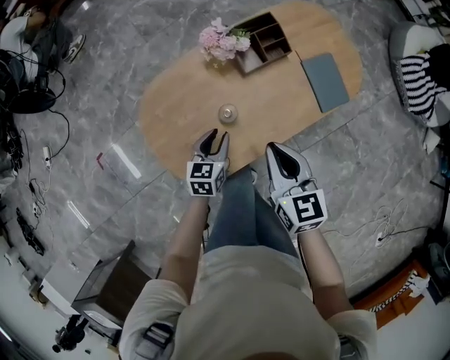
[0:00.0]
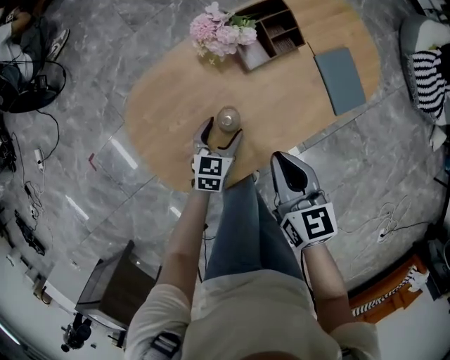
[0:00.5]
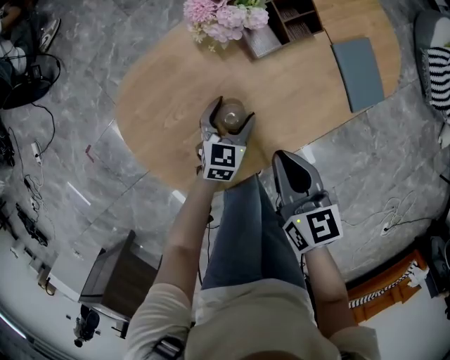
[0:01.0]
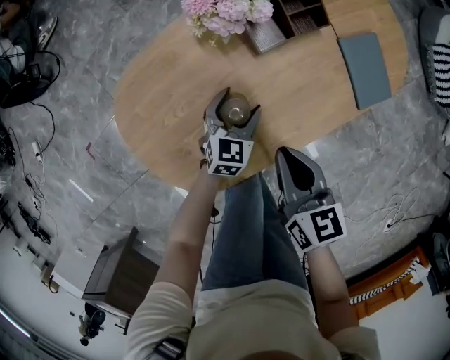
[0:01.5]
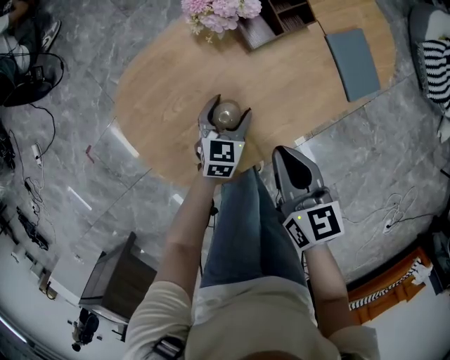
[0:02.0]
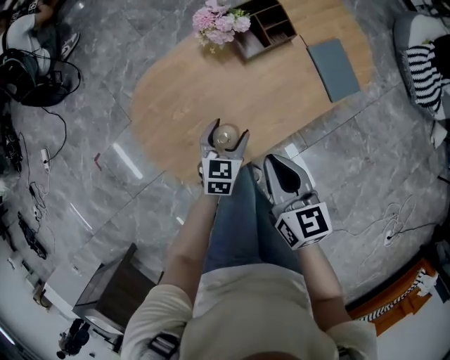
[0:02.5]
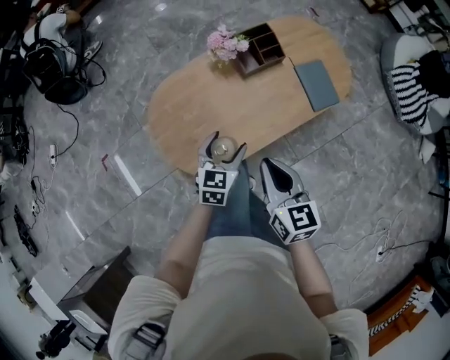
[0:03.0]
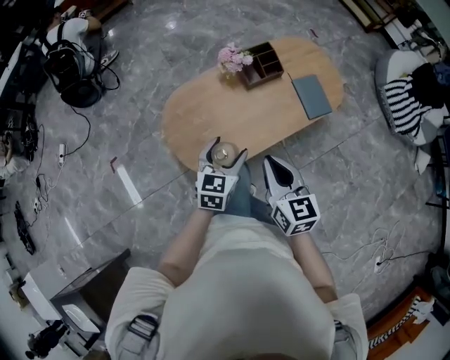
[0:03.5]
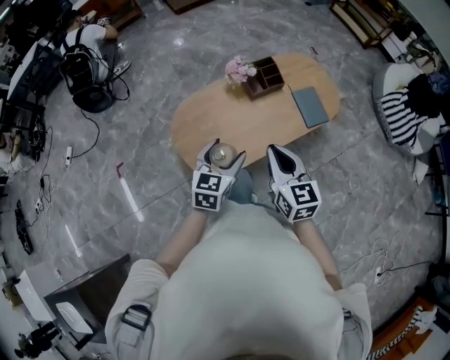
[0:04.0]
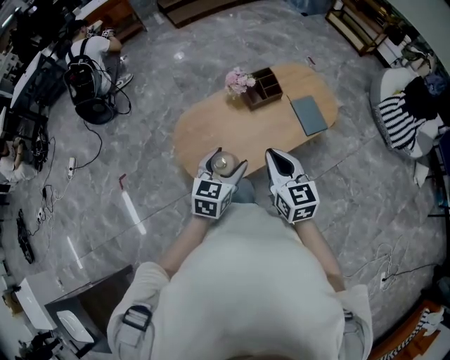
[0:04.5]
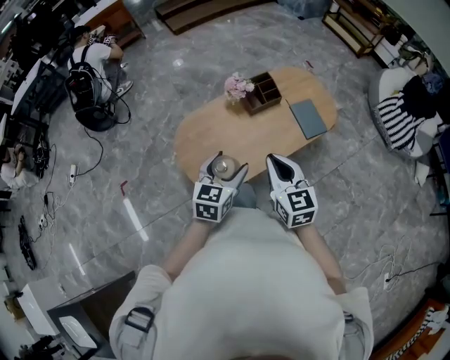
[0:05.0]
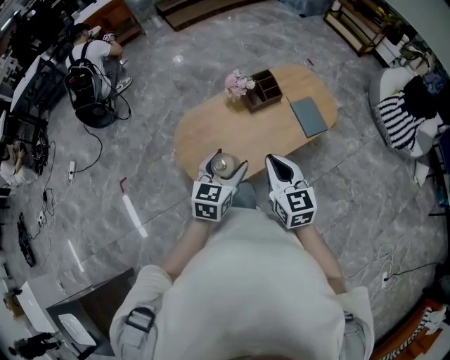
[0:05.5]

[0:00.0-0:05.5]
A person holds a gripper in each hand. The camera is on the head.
0:00.0 to 0:02.0: The left gripper goes roughly 15 cm downward and forward, and opens its fingers. Meanwhile the right gripper is displaced downward by about 10 cm.
0:02.0 to 0:03.5: Both grippers travel together upward and backward, roughly 30 cm.
0:03.5 to 0:05.5: The left gripper is displaced upward by roughly 10 cm.

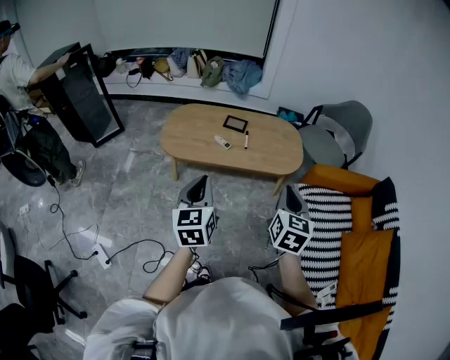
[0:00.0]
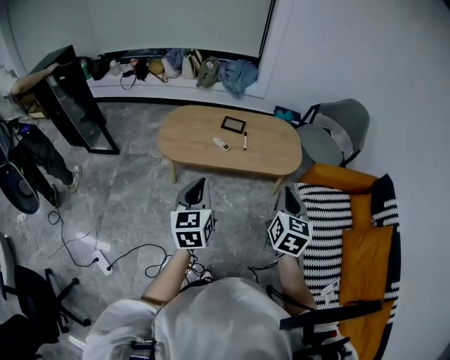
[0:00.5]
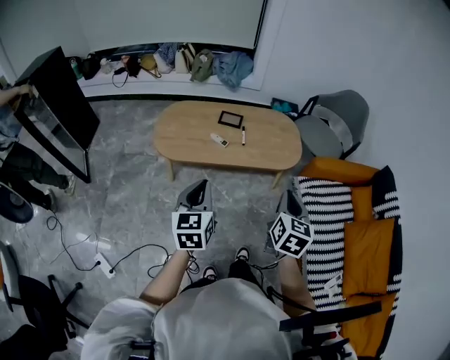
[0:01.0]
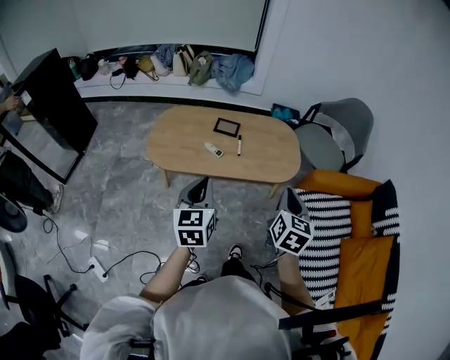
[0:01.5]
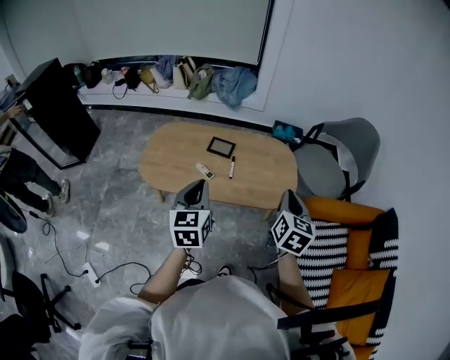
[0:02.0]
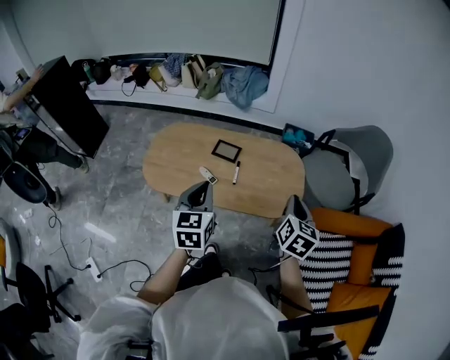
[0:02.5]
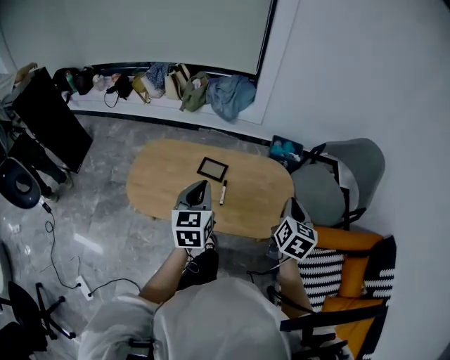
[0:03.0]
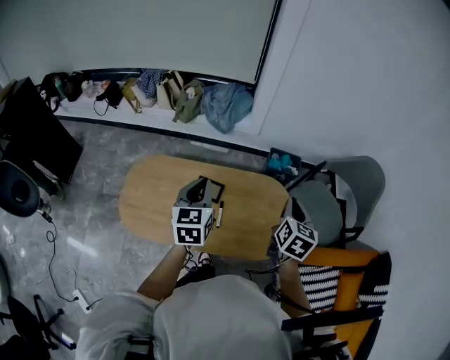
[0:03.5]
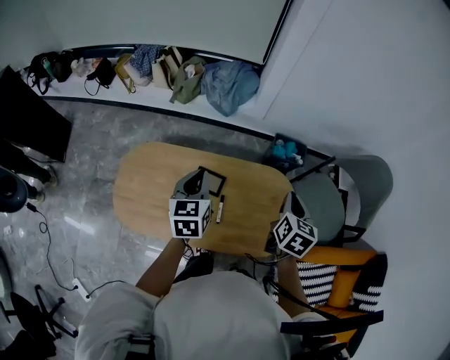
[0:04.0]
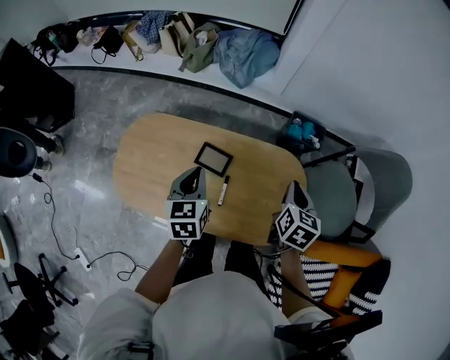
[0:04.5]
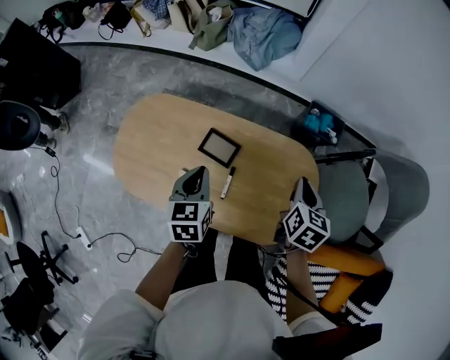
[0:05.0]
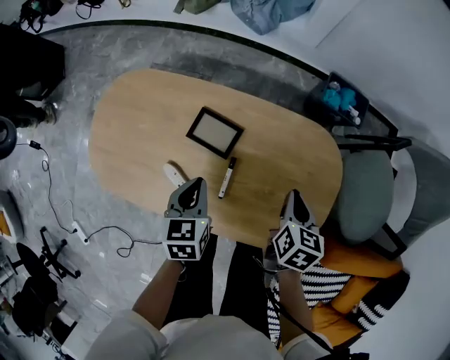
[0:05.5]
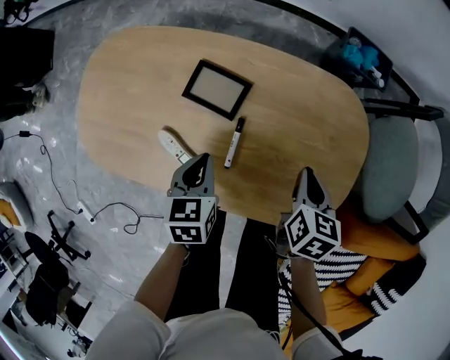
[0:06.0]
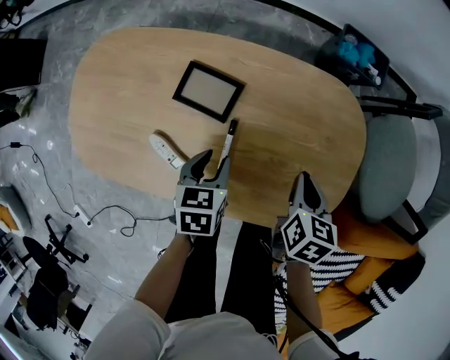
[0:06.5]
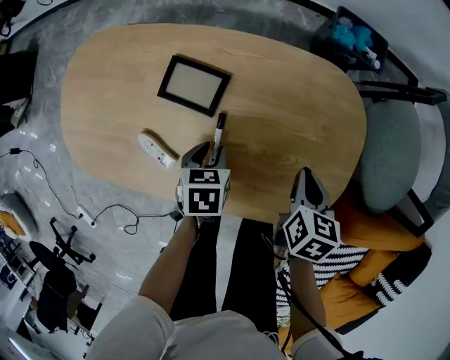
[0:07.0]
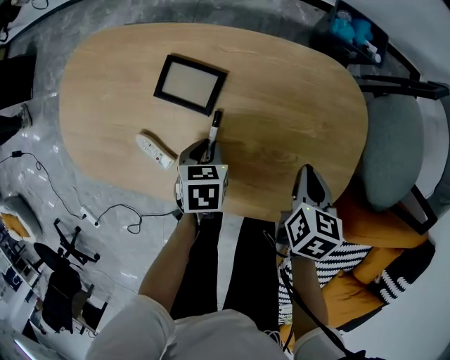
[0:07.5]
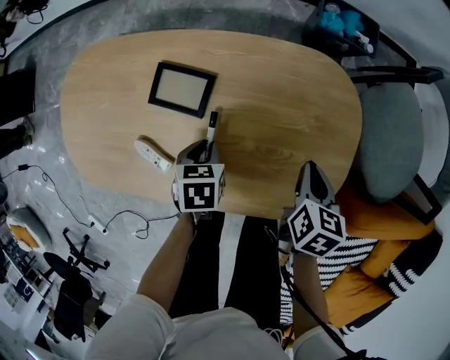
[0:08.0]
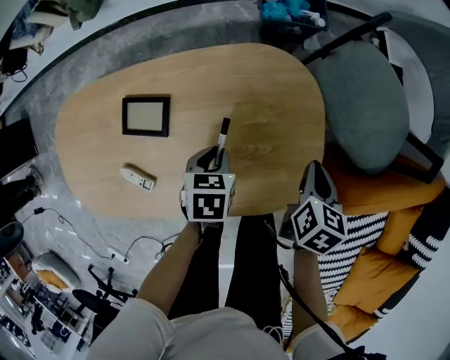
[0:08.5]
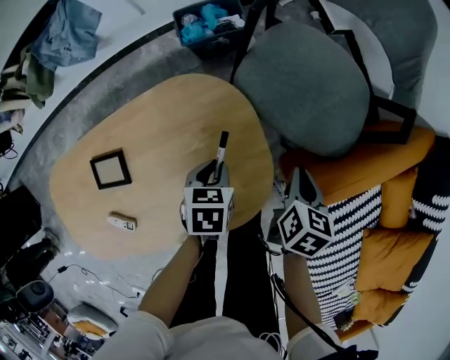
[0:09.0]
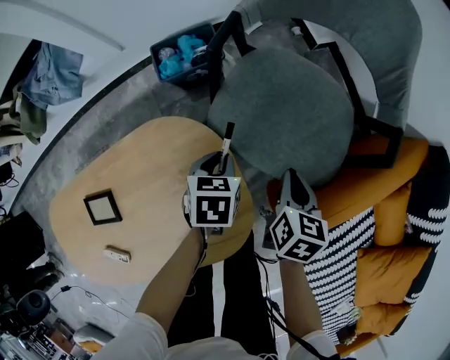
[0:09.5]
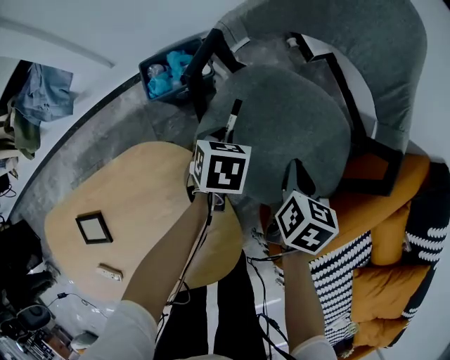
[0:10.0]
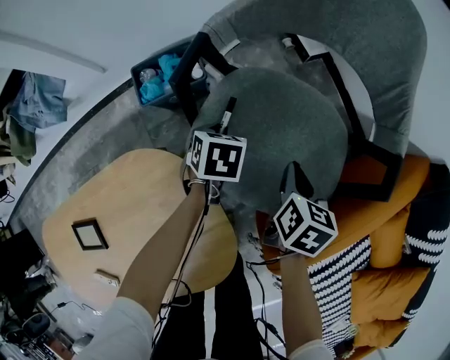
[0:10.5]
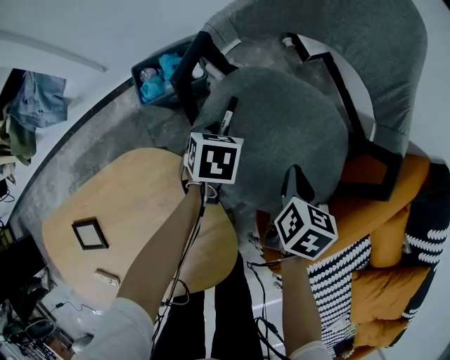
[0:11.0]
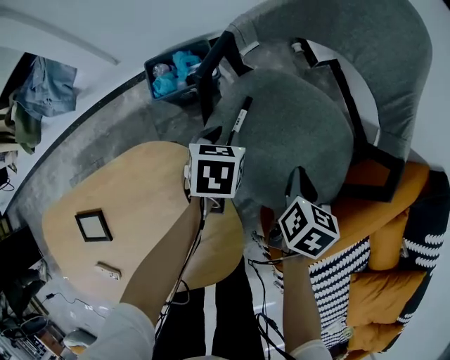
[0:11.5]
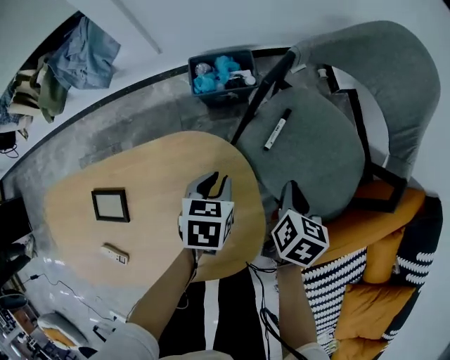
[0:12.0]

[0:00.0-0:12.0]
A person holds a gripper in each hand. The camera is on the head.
0:00.0 to 0:02.0: The two grippers go roughly 25 cm forward.
0:02.0 to 0:04.0: The grippers both shift forward by about 40 cm.
0:04.0 to 0:06.0: Both grippers move downward, about 35 cm. The right gripper turns by approximately 30 degrees. Meanwhile the left gripper changes its angle by about 30 degrees.
0:06.0 to 0:08.0: The right gripper heads to the right, covering approximately 5 cm; the left gripper heads downward and to the right, covering about 10 cm, and turns by roughly 20 degrees.
0:08.0 to 0:10.0: The left gripper shifts by roughly 50 cm, and turns by about 40 degrees, while the right gripper shifts by some 35 cm, and changes its angle by some 40 degrees.
0:10.0 to 0:12.0: The right gripper goes approximately 10 cm to the left and backward, while the left gripper shifts about 20 cm backward, to the left and upward.

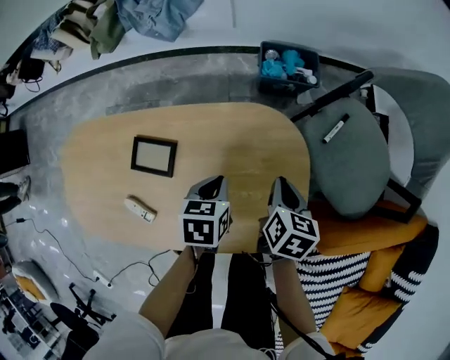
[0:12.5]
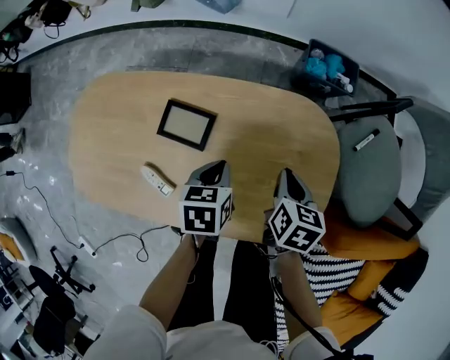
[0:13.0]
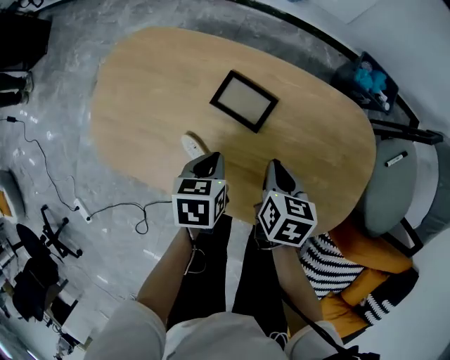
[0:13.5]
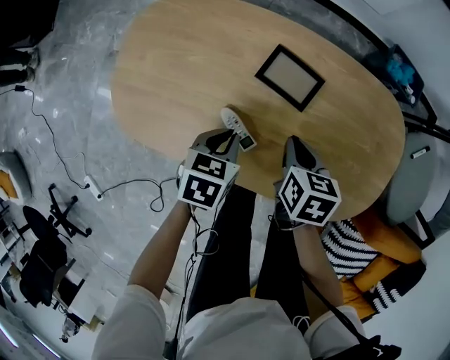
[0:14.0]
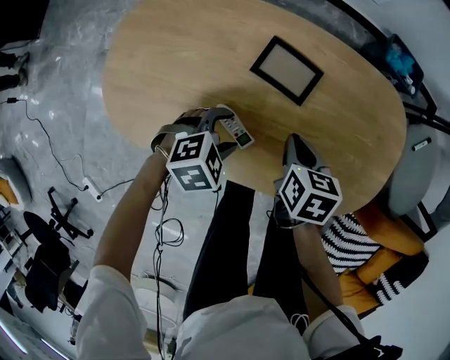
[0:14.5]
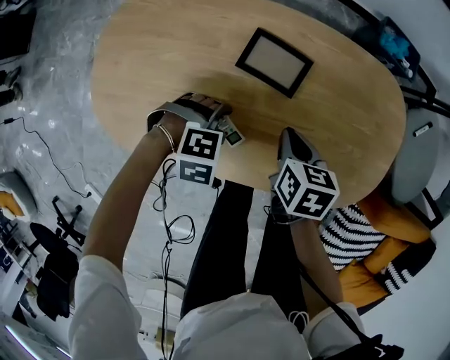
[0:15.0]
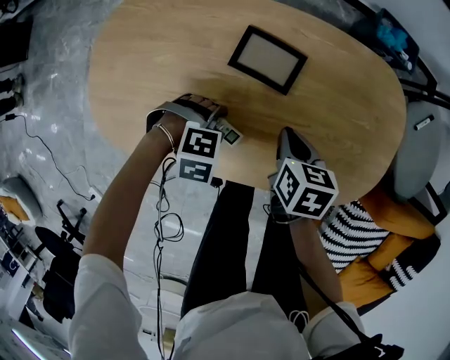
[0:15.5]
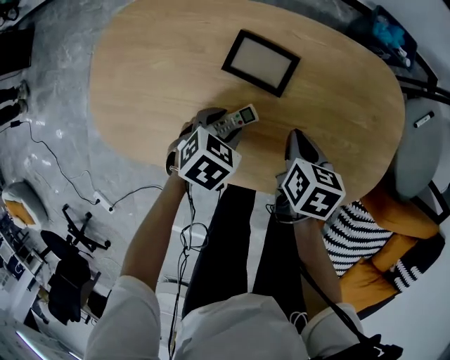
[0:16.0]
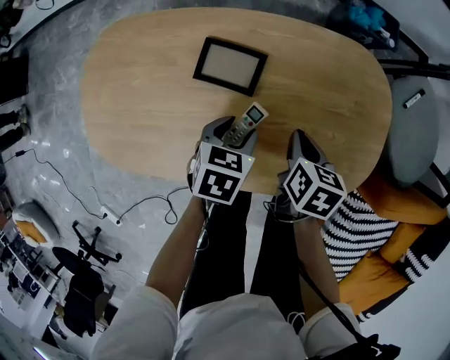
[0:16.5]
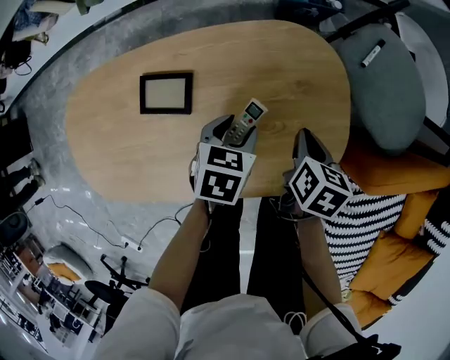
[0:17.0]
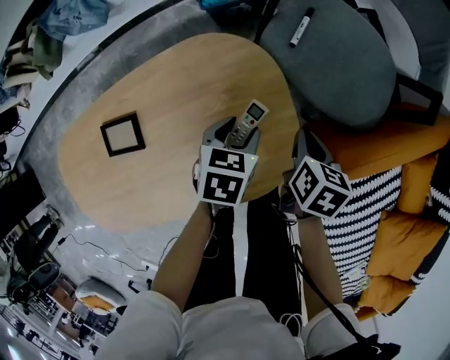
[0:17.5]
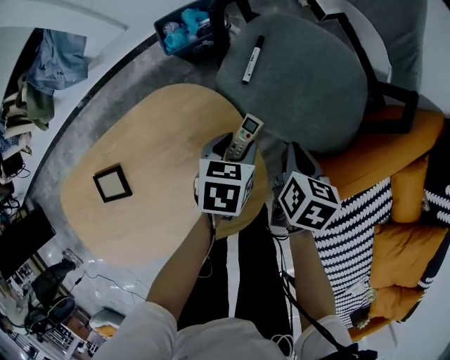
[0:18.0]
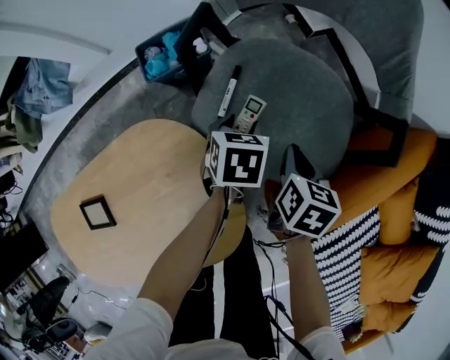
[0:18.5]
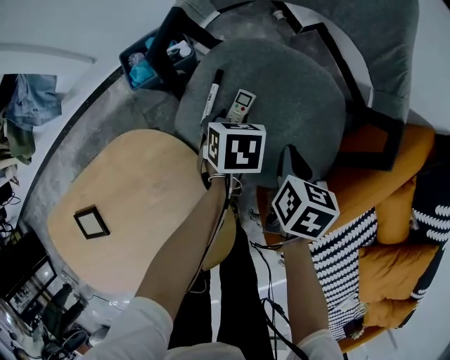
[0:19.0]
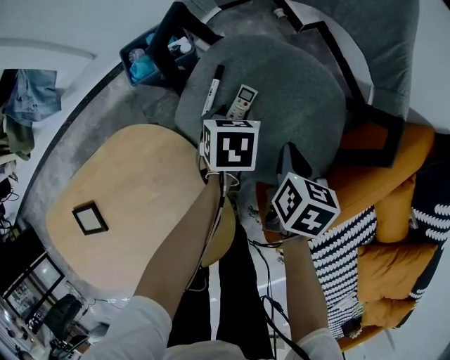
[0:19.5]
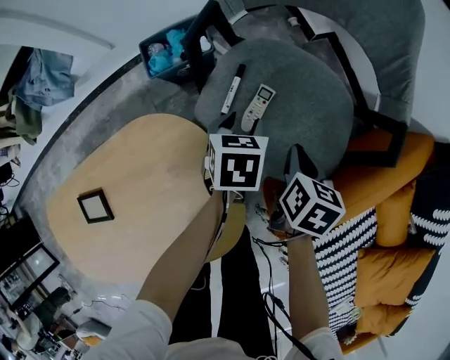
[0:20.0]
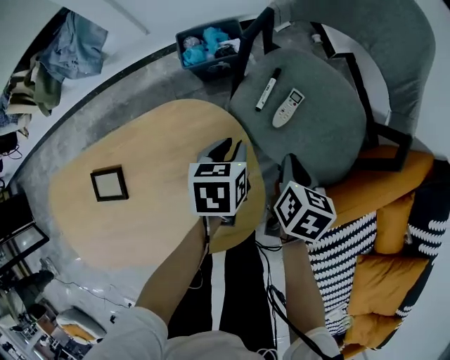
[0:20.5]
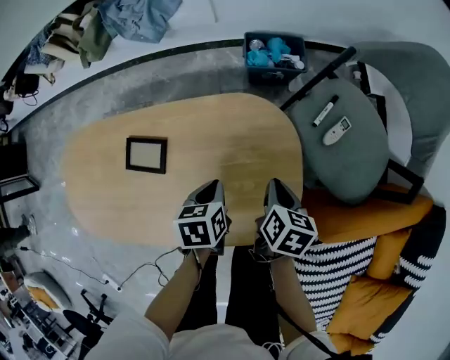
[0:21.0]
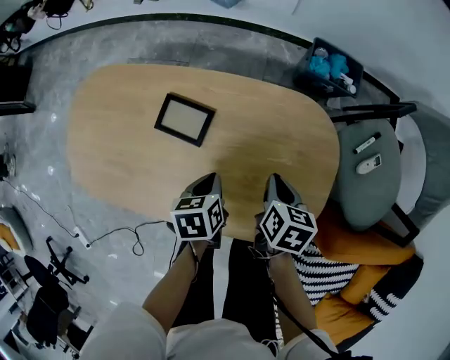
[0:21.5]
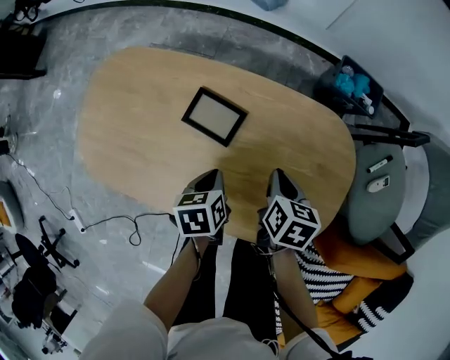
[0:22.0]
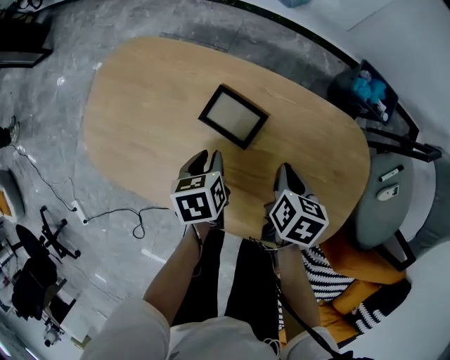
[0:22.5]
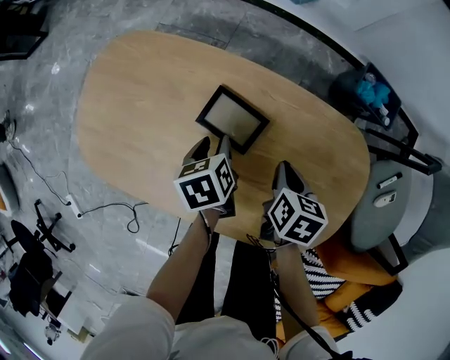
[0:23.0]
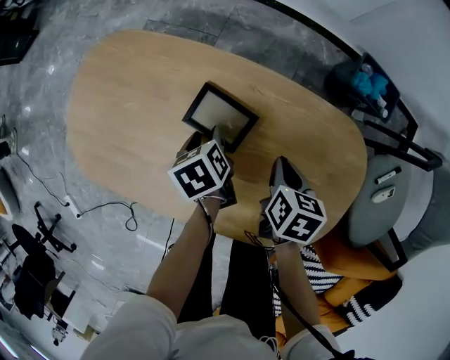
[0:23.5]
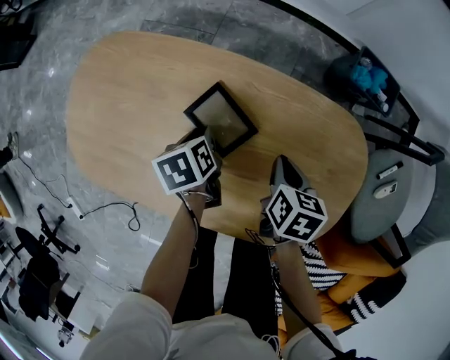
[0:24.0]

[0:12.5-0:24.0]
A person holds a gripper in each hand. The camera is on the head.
0:12.5 to 0:14.5: The right gripper moves roughly 35 cm, and turns by some 30 degrees. The left gripper moves some 35 cm, rotates around the line of its fingers by approximately 50 degrees, clockwise from behind, and opens.
0:14.5 to 0:16.5: The right gripper moves approximately 10 cm, while the left gripper ends up roughly 15 cm from where it was, and swivels approximately 40 degrees.
0:16.5 to 0:18.5: Both grippers are carried roughly 50 cm. The left gripper changes its angle by approximately 20 degrees. Meanwhile the right gripper rotates approximately 40 degrees.
0:18.5 to 0:20.0: The grippers stay close to where they were, moving slightly.
0:20.0 to 0:22.0: Both grippers are carried roughly 50 cm. The right gripper changes its angle by approximately 50 degrees, while the left gripper rotates around the line of its fingers by roughly 50 degrees, counterclockwise from behind, and closes.
0:22.0 to 0:24.0: The left gripper is displaced forward, downward and to the left by some 15 cm, and opens its fingers. The right gripper changes place by some 5 cm.
